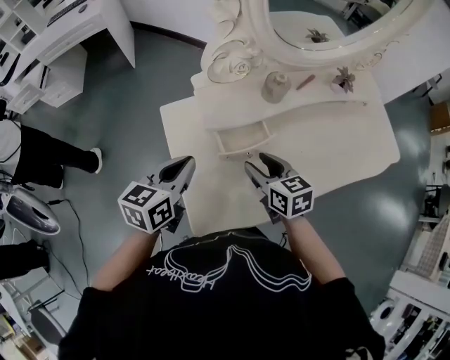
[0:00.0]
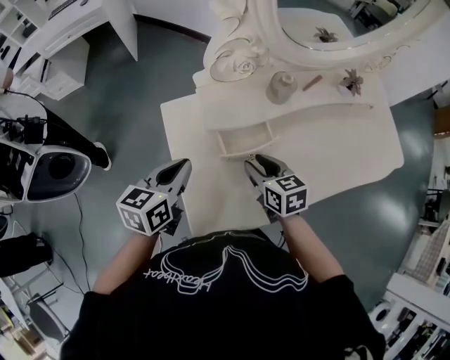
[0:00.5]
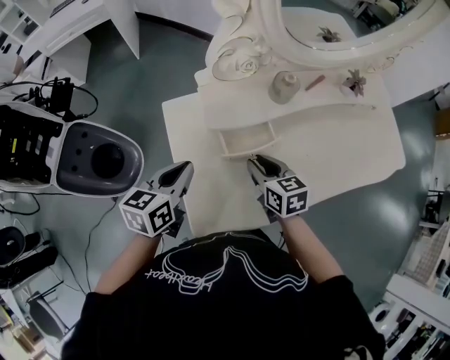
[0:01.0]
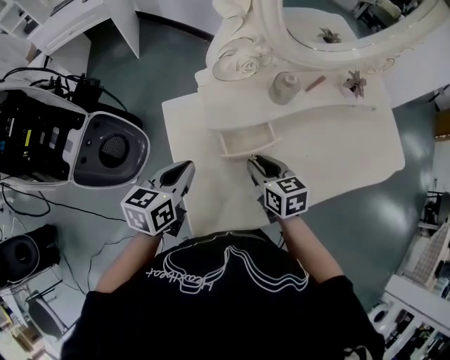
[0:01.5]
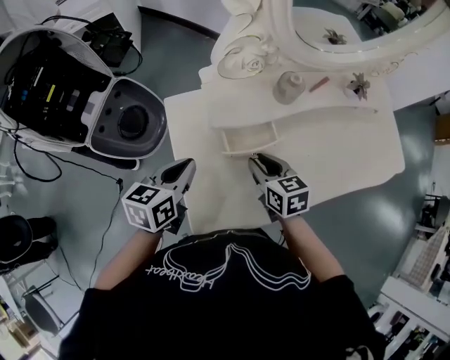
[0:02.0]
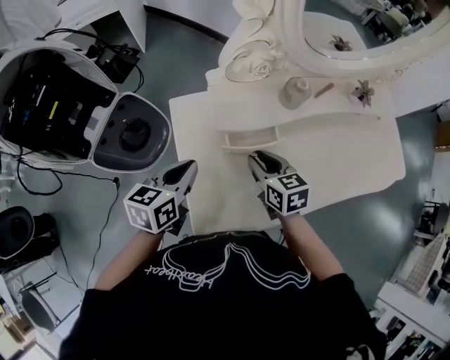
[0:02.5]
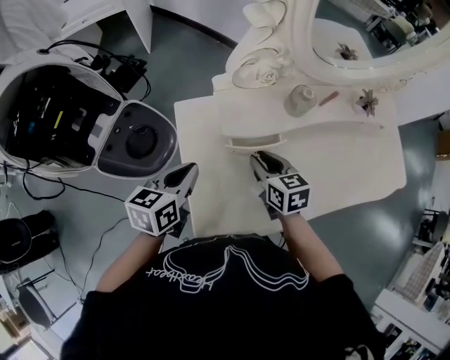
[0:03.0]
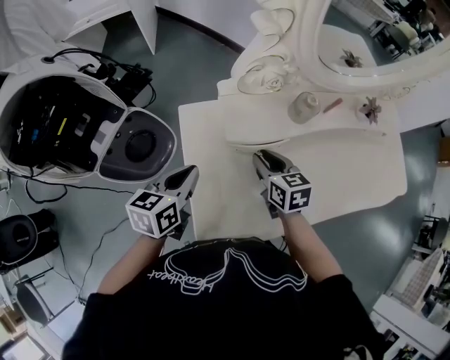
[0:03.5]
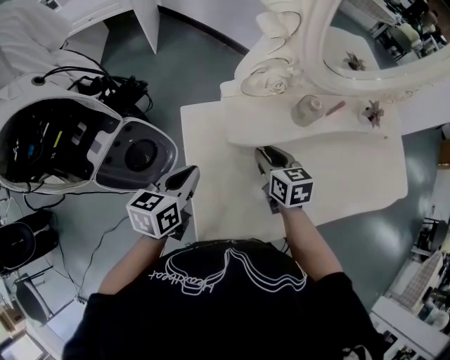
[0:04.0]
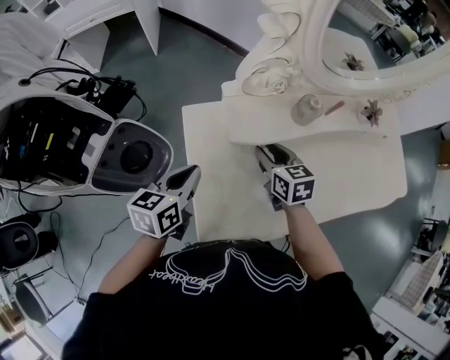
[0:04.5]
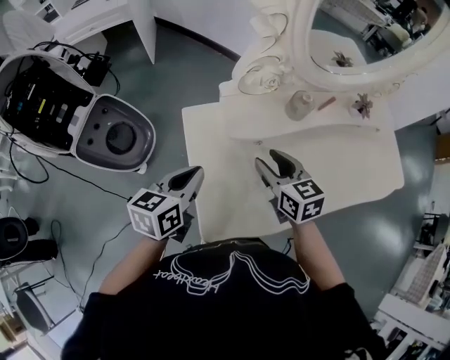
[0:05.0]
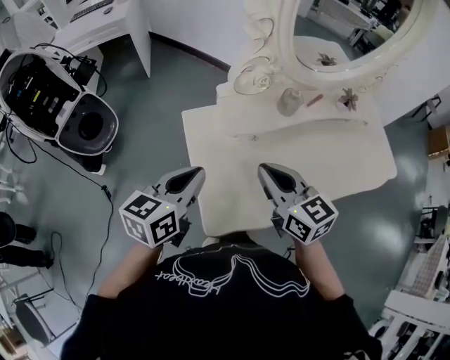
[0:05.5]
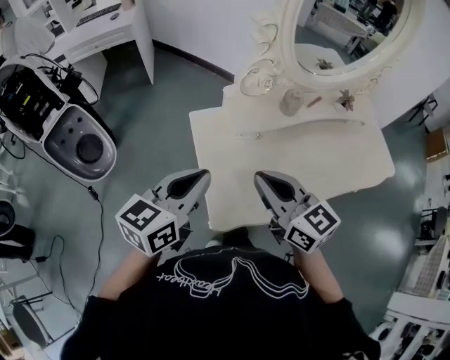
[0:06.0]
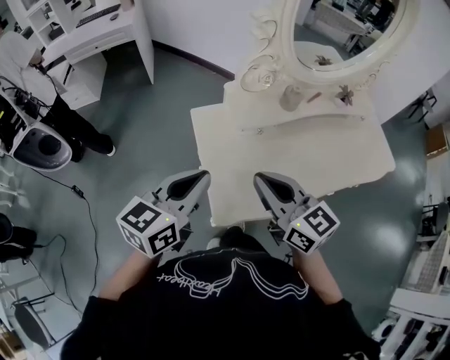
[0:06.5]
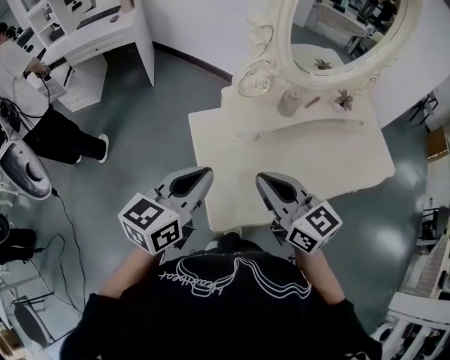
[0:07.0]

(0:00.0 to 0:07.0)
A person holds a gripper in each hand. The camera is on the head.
0:00.0 - 0:02.0: The right gripper closes its fingers.
0:02.0 - 0:03.5: The right gripper shifts by roughly 5 cm.
0:03.5 - 0:05.0: The right gripper shifts approximately 10 cm upward, and opens.
0:05.0 - 0:07.0: The two grippers go about 15 cm upward and backward. The right gripper turns by some 20 degrees, and closes its fingers.

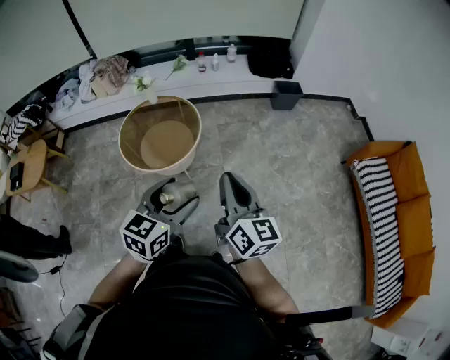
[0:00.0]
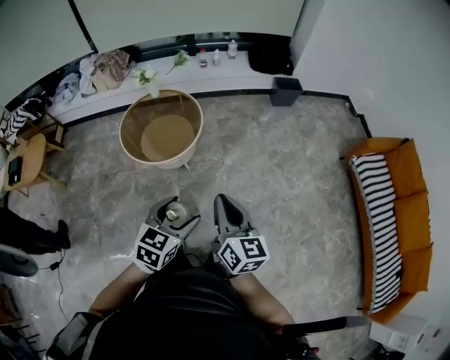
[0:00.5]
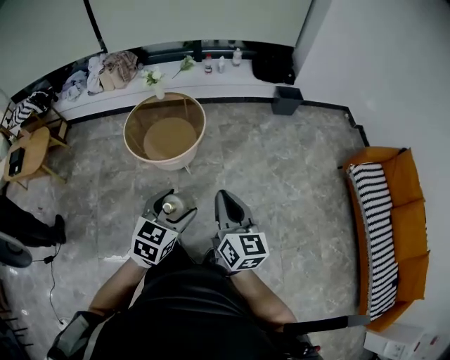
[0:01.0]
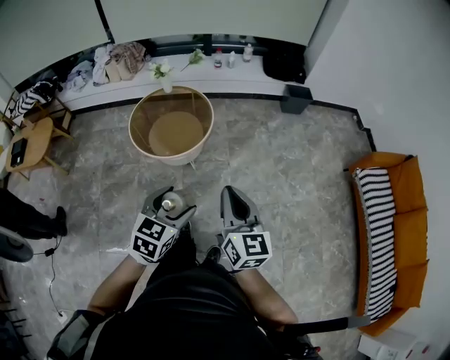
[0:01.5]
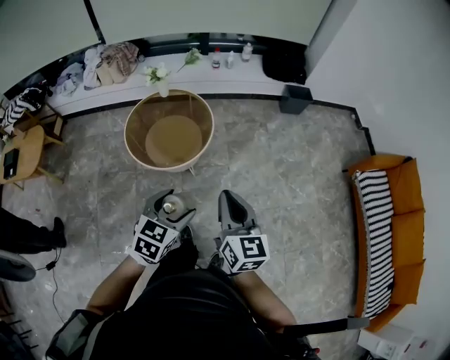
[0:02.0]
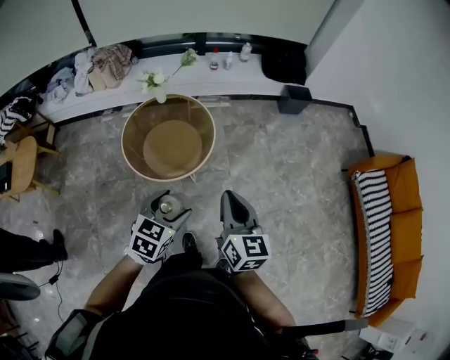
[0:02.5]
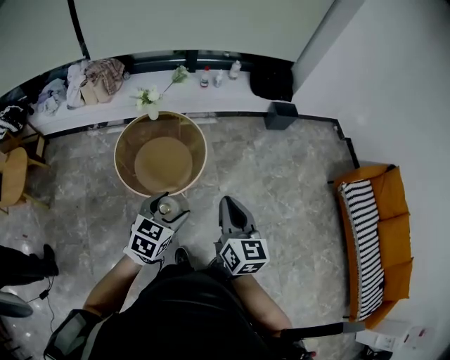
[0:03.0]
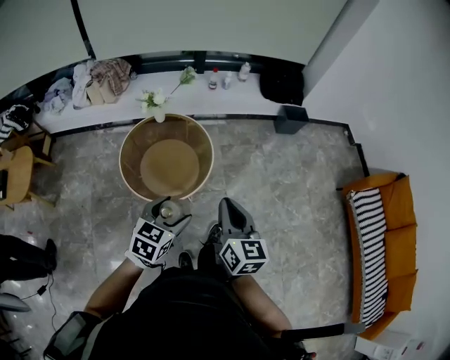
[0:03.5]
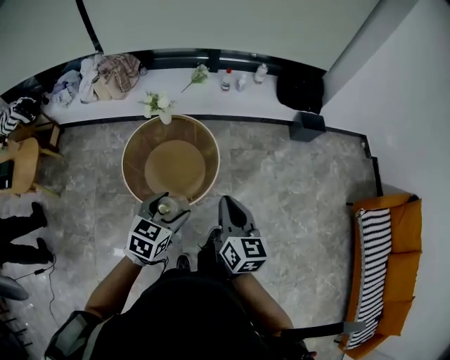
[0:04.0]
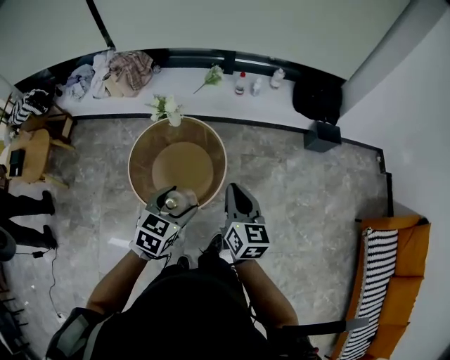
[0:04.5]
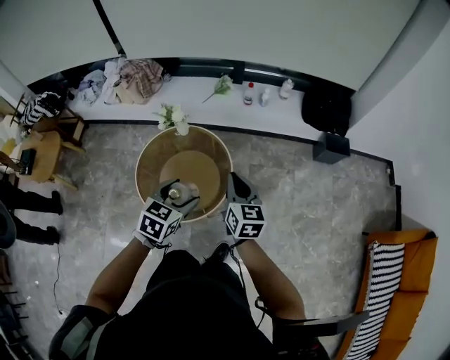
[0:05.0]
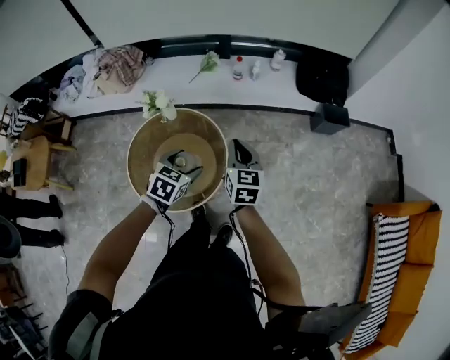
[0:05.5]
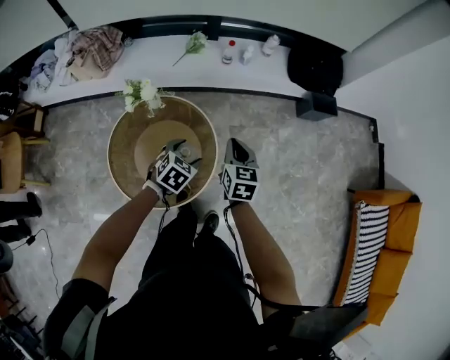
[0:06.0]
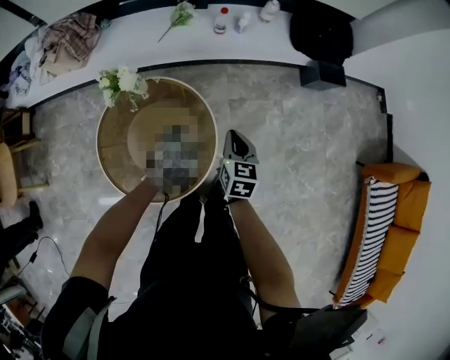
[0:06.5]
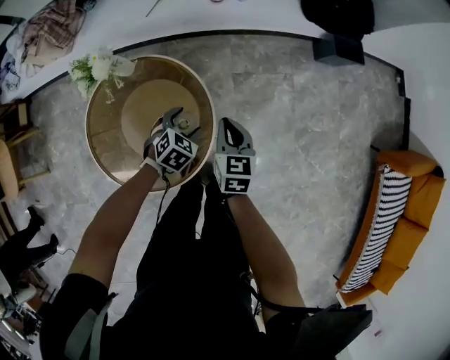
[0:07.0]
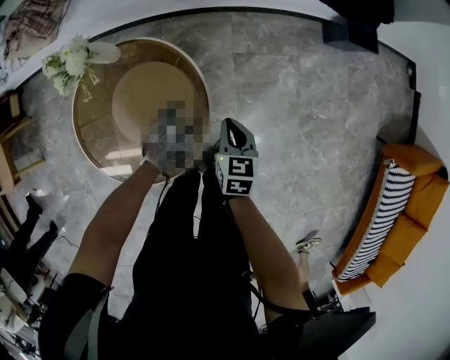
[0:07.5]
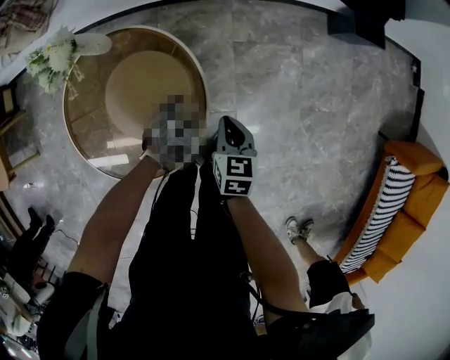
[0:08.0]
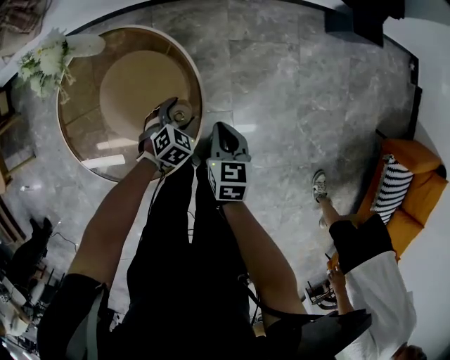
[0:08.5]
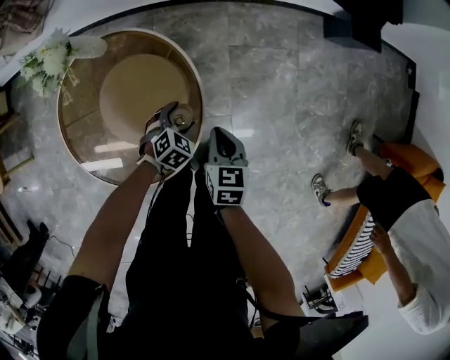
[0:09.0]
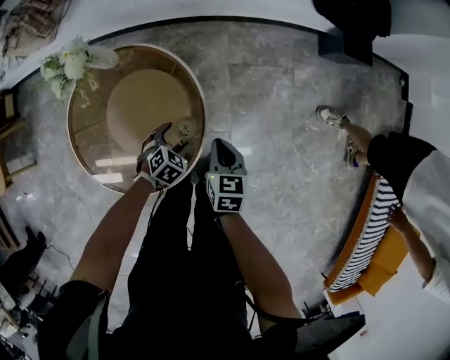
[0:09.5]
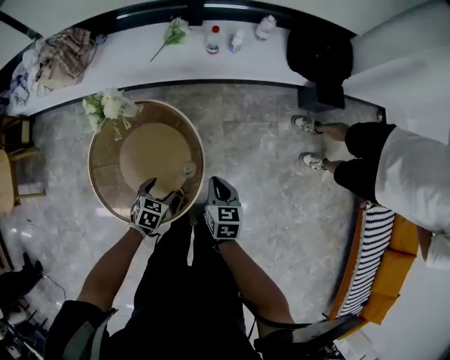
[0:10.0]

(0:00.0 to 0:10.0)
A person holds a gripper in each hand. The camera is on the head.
0:00.0 - 0:02.0: The grippers both shift to the left and downward by approximately 15 cm. The right gripper reaches approximately 10 cm backward, then returns.
0:02.0 - 0:04.0: Both grippers move forward, about 25 cm.
0:04.0 - 0:06.0: Both grippers move forward and downward, about 35 cm. The right gripper turns by about 20 degrees. The left gripper turns by some 20 degrees.
0:06.0 - 0:08.0: The two grippers go about 30 cm downward.
0:08.0 - 0:10.0: The left gripper goes roughly 15 cm upward, backward and to the left, and turns by some 20 degrees. Meanwhile the right gripper goes about 10 cm upward.

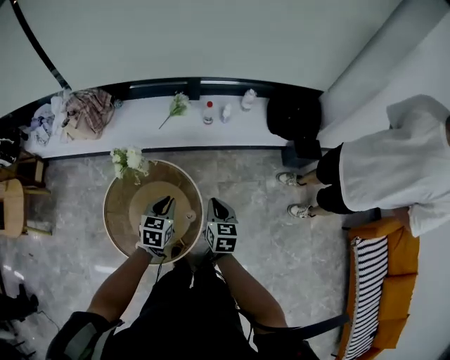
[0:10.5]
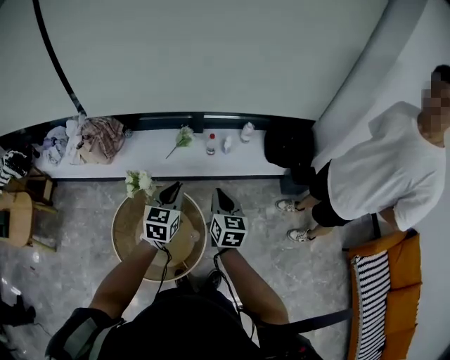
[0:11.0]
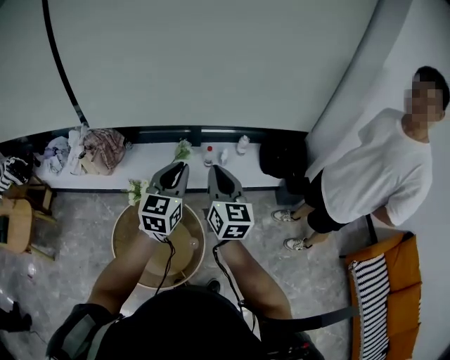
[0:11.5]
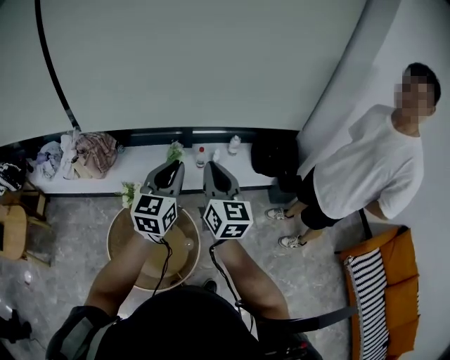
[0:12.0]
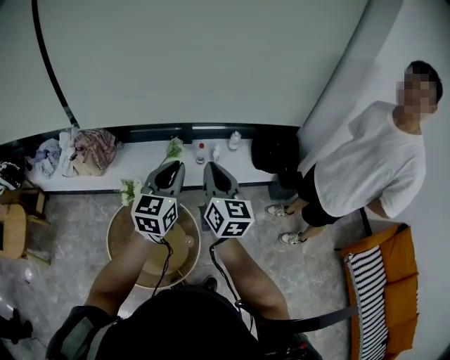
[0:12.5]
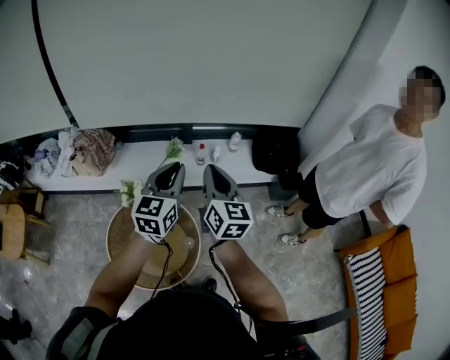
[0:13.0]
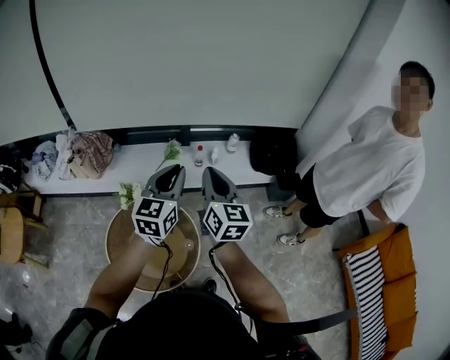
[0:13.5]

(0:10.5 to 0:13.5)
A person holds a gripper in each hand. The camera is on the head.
0:10.5 - 0:12.0: Both grippers move upward, about 35 cm. The left gripper tips its fingers upward by some 40 degrees. The right gripper tilts its fingers some 40 degrees upward.
0:12.0 - 0:13.5: The grippers stay close to where they were, moving slightly.

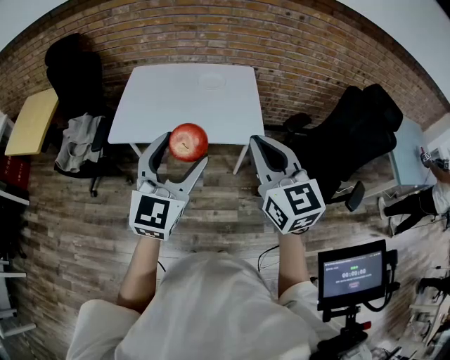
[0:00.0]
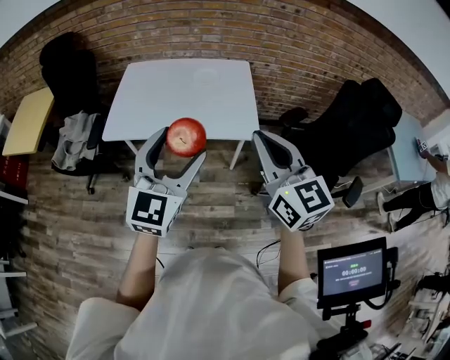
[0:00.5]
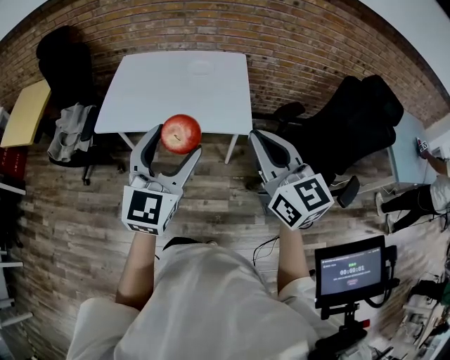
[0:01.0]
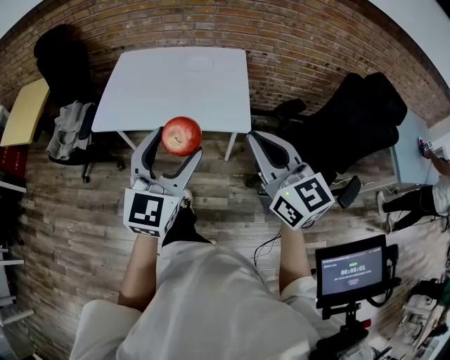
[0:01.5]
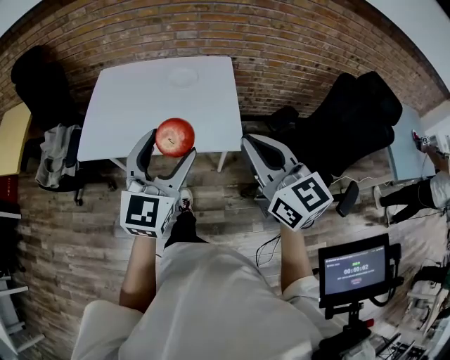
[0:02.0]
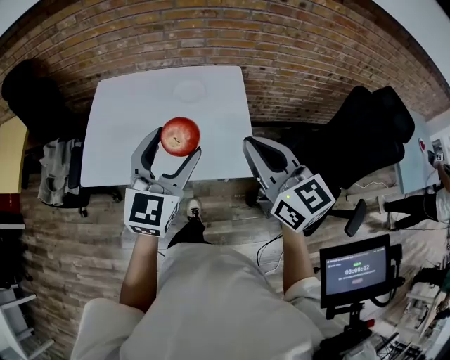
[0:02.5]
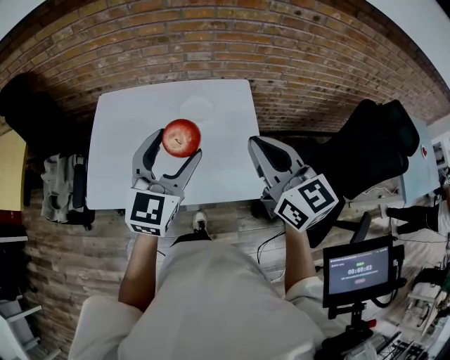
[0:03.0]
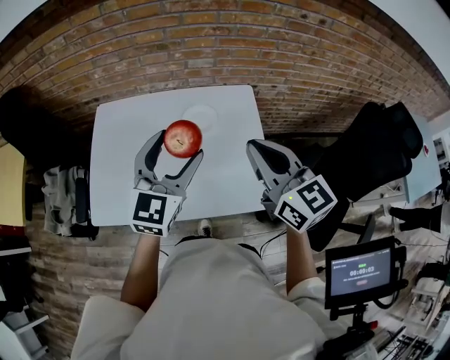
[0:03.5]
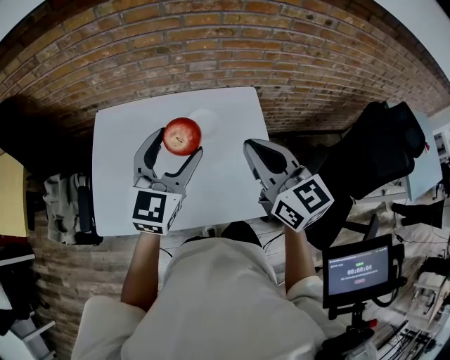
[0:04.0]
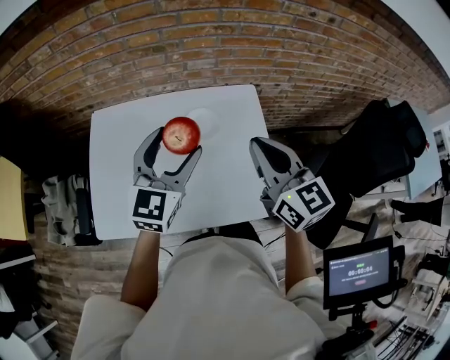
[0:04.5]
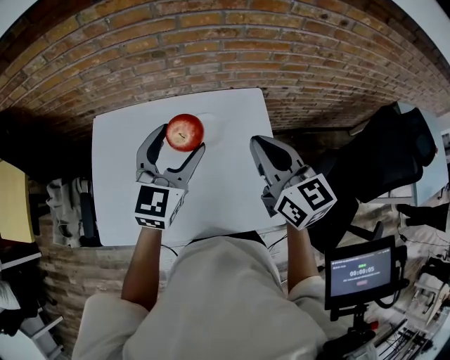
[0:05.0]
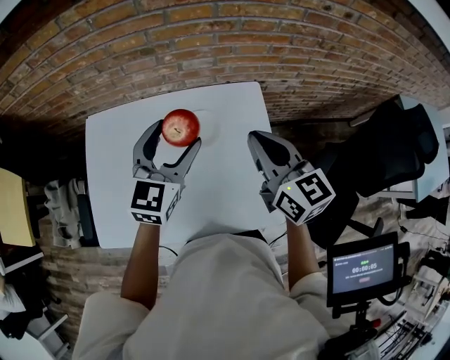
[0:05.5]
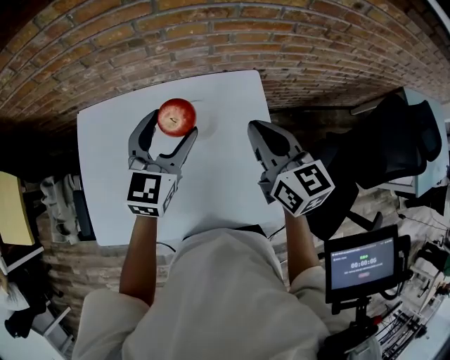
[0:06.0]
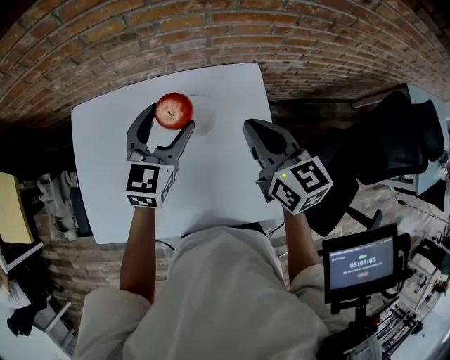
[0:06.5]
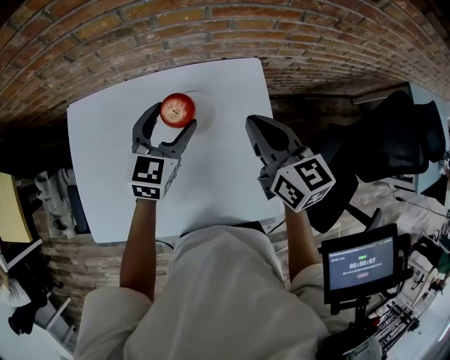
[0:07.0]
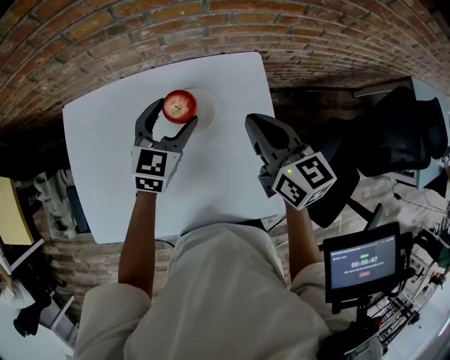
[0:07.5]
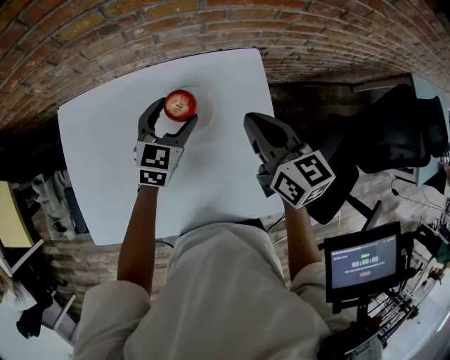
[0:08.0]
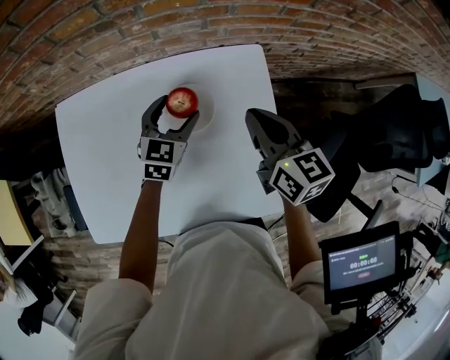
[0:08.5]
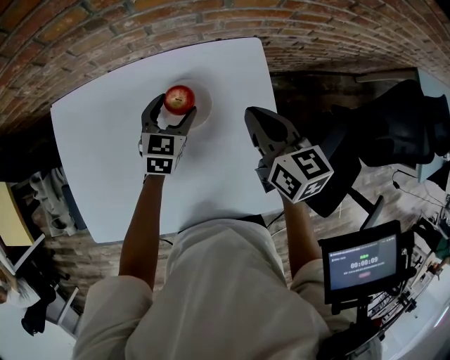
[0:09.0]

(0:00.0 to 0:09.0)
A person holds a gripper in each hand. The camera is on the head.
0:00.0 - 0:02.0: Both grippers move forward and to the right, about 15 cm.
0:02.0 - 0:04.5: The two grippers go approximately 35 cm forward.
0:04.5 - 0:07.0: The two grippers go about 20 cm forward and downward.
0:07.0 - 0:09.0: The right gripper heads downward, covering some 5 cm. The left gripper moves downward, approximately 15 cm.
